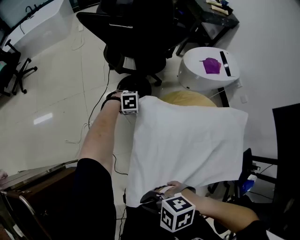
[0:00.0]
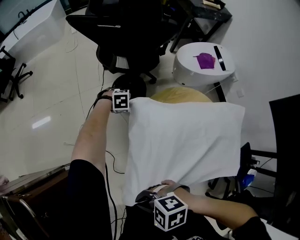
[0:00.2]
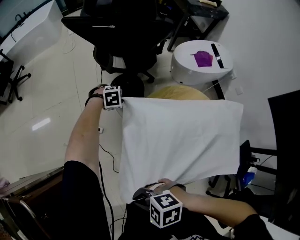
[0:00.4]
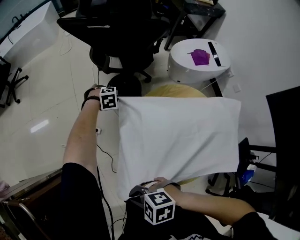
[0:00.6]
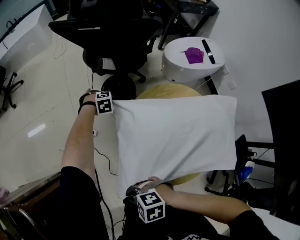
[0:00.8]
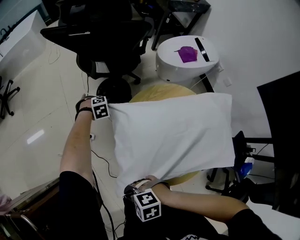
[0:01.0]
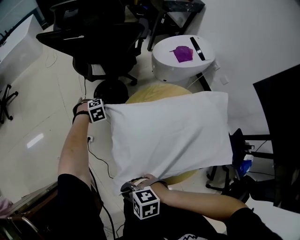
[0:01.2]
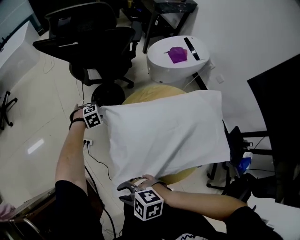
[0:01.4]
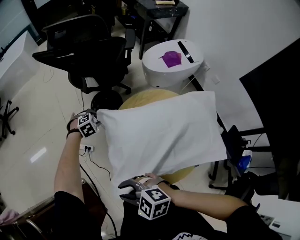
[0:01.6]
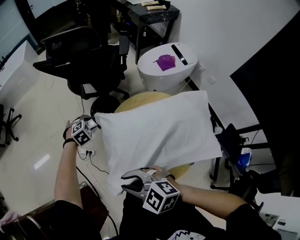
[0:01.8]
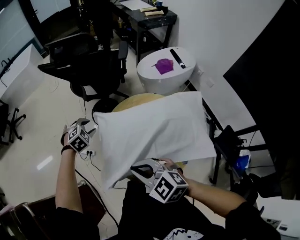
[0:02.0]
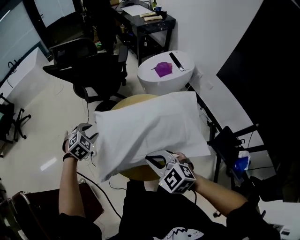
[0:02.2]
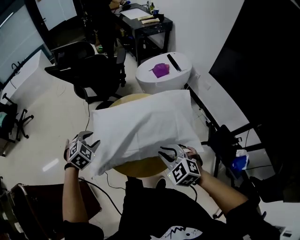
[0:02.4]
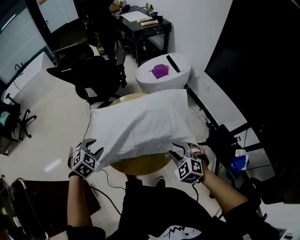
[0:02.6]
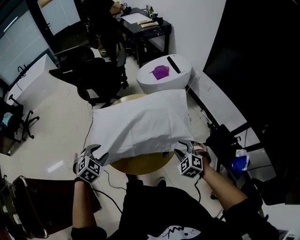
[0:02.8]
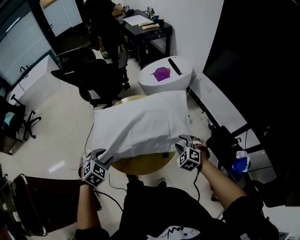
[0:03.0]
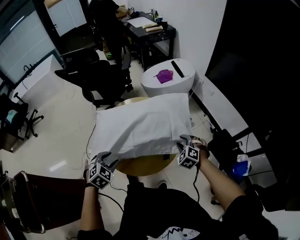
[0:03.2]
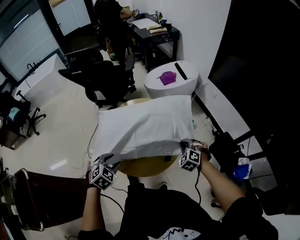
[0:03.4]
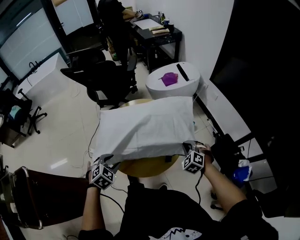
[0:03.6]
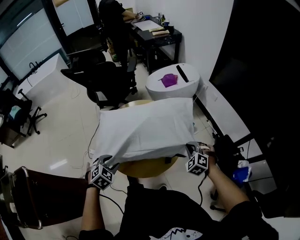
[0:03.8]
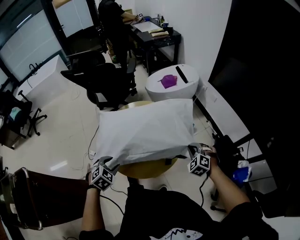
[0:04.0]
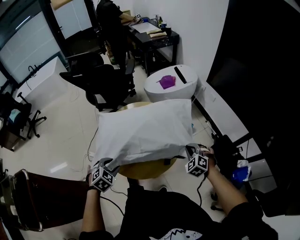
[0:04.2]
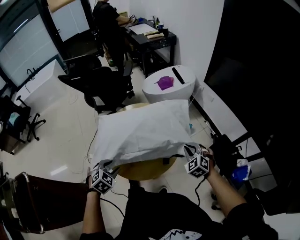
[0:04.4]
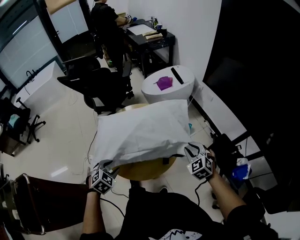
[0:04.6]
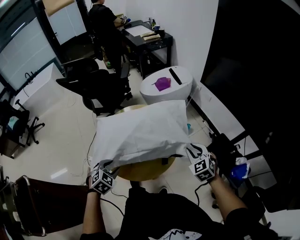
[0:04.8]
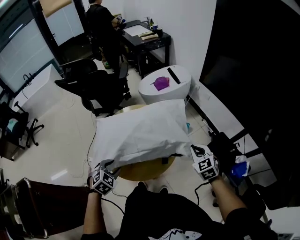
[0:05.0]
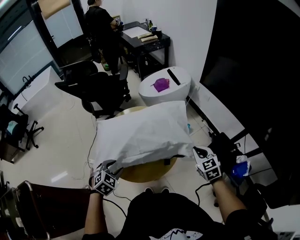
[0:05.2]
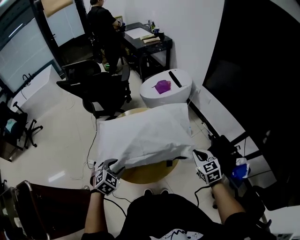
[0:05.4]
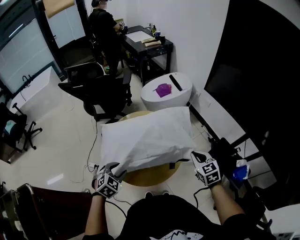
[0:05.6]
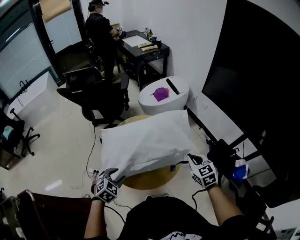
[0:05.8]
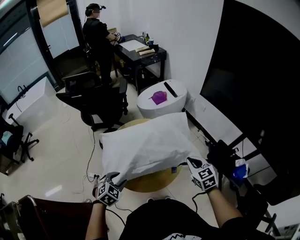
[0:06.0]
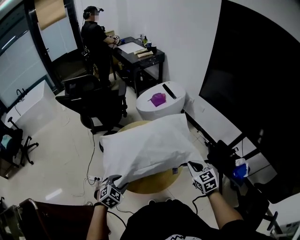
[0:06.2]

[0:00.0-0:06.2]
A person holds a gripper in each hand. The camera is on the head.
0:00.0 to 0:01.6: The right gripper reaches about 10 cm downward, then returns, rotates roughly 30 degrees, and opens. Meanwhile the left gripper changes place by approximately 5 cm, swivels approximately 20 degrees, and closes and opens again.
0:01.6 to 0:03.2: The right gripper shifts by approximately 50 cm, turns by some 50 degrees, and closes, then opens again, while the left gripper moves about 40 cm, and turns by roughly 20 degrees.
0:03.2 to 0:04.6: The right gripper heads upward, covering approximately 10 cm, rotates some 20 degrees, and closes, then reopens.
0:04.6 to 0:06.2: The right gripper moves backward and to the left, roughly 10 cm, changes its angle by roughly 30 degrees, and closes its fingers.

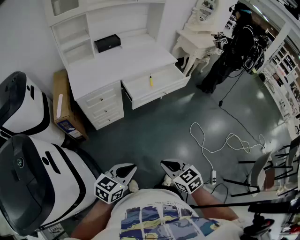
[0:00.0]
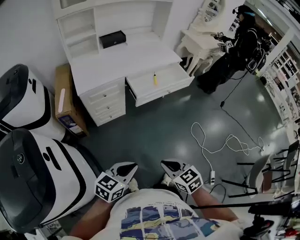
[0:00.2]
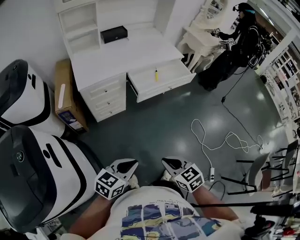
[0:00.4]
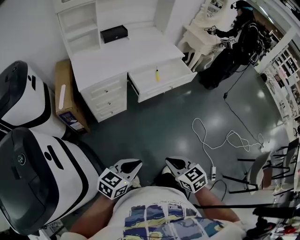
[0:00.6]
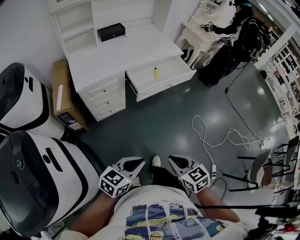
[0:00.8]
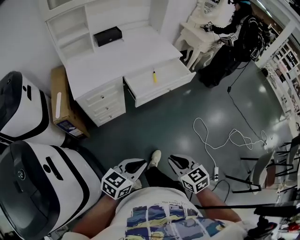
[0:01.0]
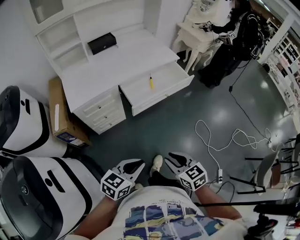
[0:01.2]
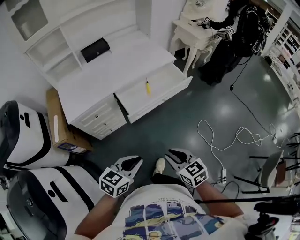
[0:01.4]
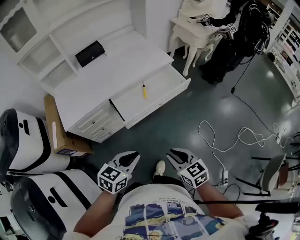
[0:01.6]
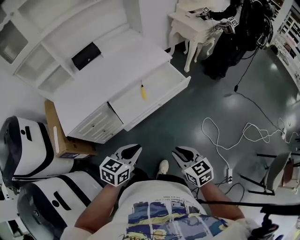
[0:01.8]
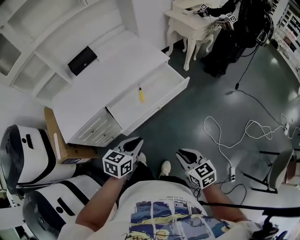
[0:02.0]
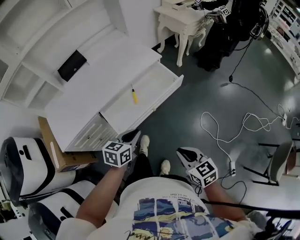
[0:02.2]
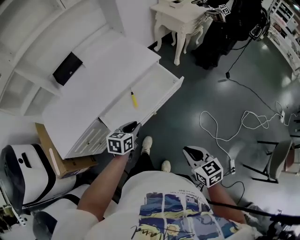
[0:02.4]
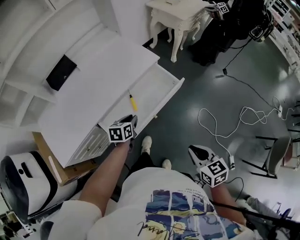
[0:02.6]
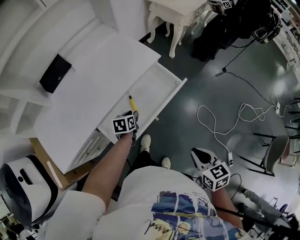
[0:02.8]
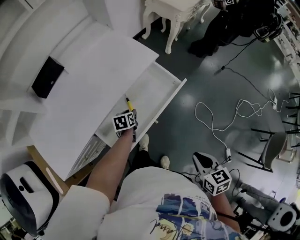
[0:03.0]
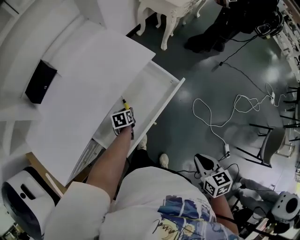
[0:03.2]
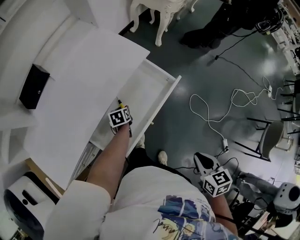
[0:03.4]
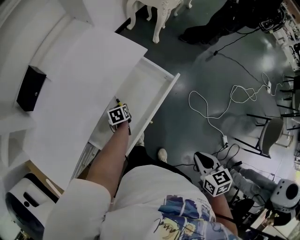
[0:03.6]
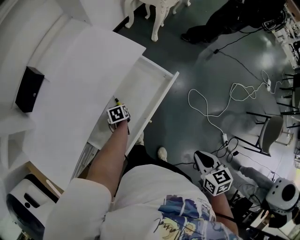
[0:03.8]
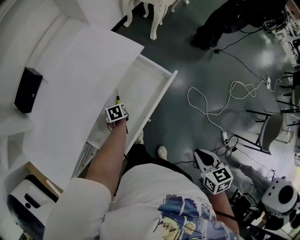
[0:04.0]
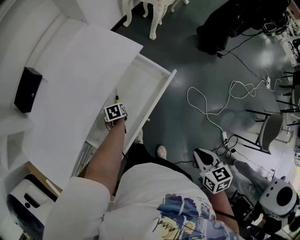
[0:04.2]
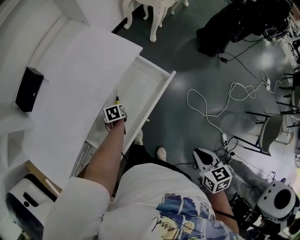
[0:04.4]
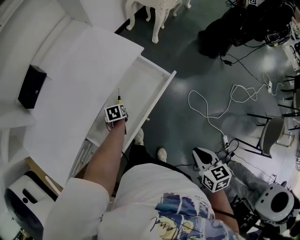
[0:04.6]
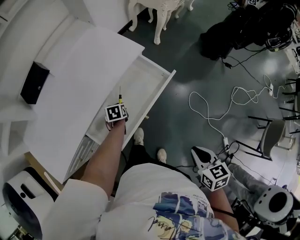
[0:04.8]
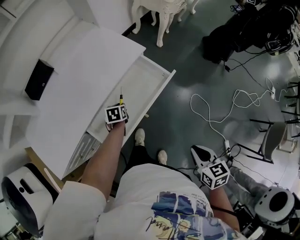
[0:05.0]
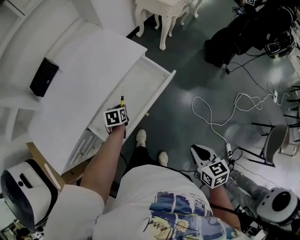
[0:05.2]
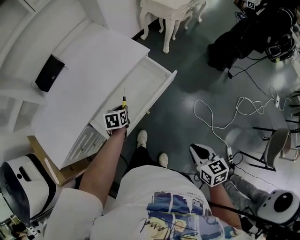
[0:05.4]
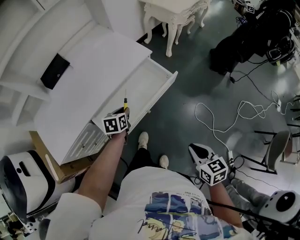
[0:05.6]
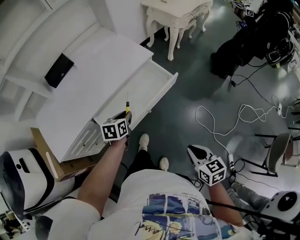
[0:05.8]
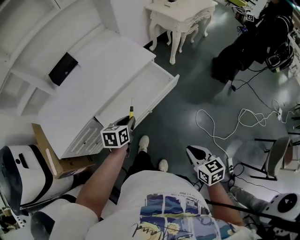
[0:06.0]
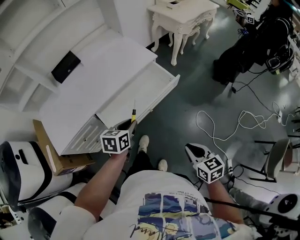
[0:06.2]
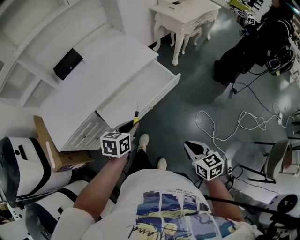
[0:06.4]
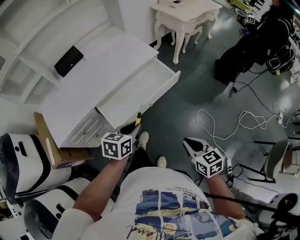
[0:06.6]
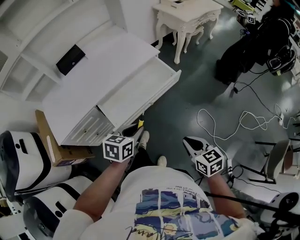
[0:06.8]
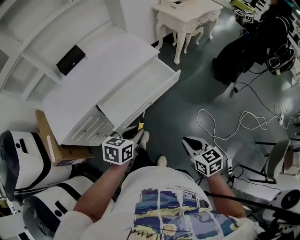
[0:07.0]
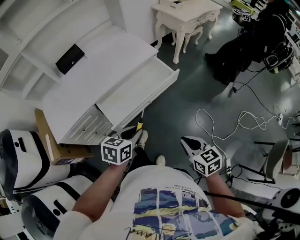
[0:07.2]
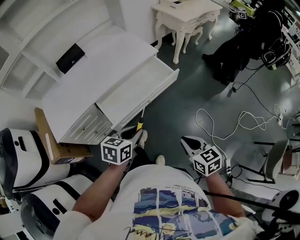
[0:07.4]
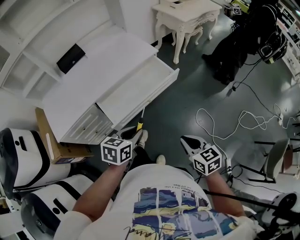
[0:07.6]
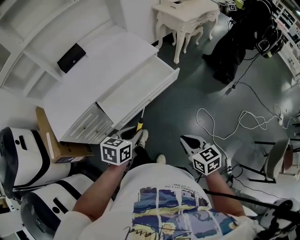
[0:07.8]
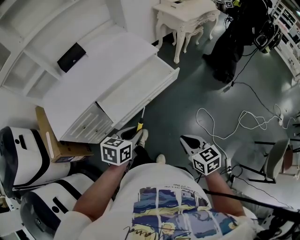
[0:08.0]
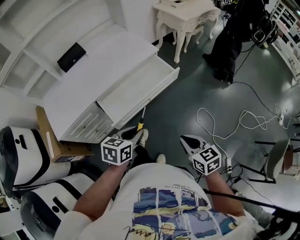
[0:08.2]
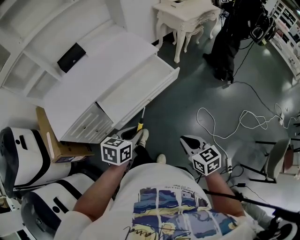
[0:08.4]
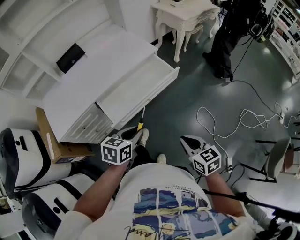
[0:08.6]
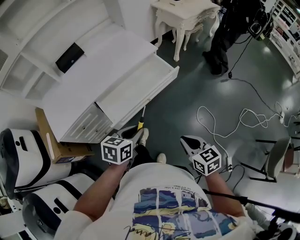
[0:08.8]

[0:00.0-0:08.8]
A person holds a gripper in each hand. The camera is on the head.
0:00.0 to 0:01.4: The grippers both shift forward by approximately 20 cm. The right gripper opens its fingers.
0:01.4 to 0:03.0: The right gripper travels forward and to the right by roughly 25 cm, and swivels some 40 degrees. The left gripper heads forward and downward, covering about 60 cm, swivels roughly 40 degrees, and opens its fingers.
0:03.0 to 0:04.4: The left gripper moves downward, some 5 cm.
0:04.4 to 0:05.8: The right gripper shifts approximately 5 cm backward; the left gripper shifts roughly 25 cm upward and backward, and rotates some 20 degrees.
0:05.8 to 0:07.4: The left gripper goes some 20 cm backward and upward.
0:07.4 to 0:08.8: Neither gripper changes place.

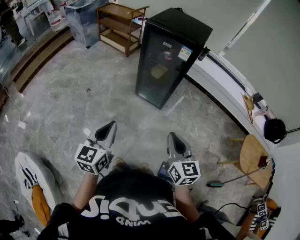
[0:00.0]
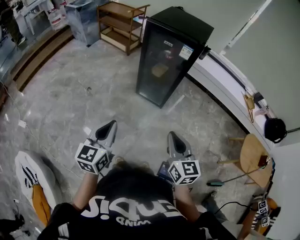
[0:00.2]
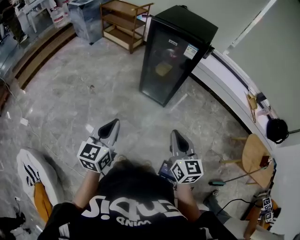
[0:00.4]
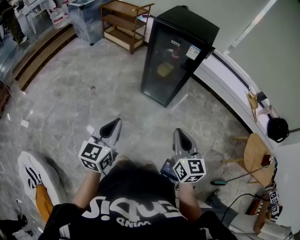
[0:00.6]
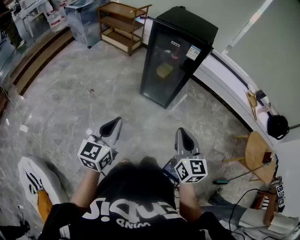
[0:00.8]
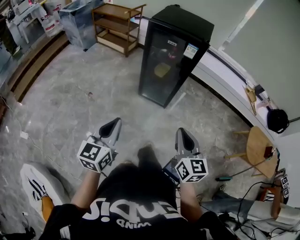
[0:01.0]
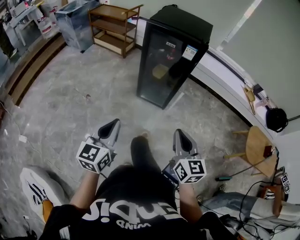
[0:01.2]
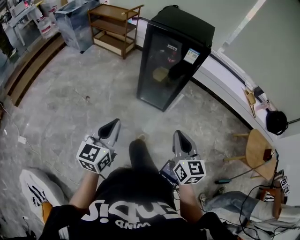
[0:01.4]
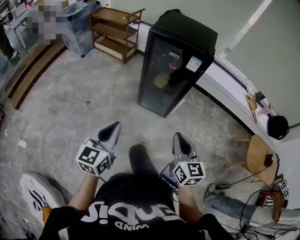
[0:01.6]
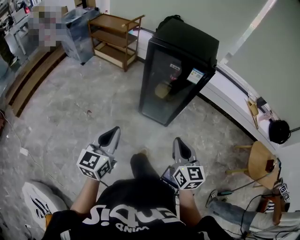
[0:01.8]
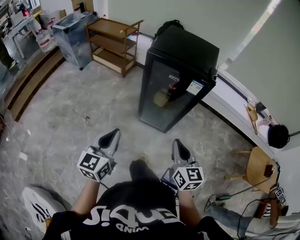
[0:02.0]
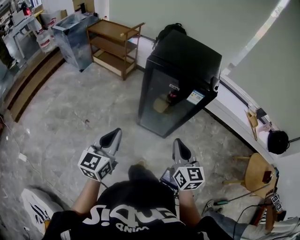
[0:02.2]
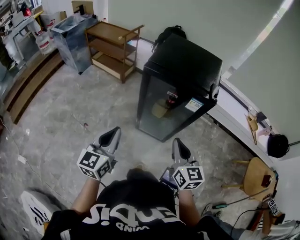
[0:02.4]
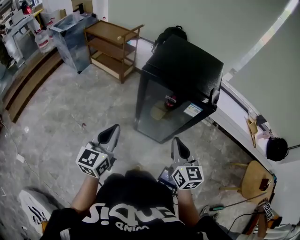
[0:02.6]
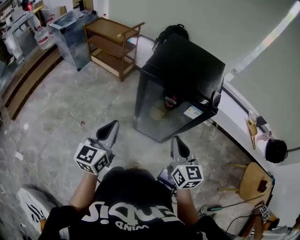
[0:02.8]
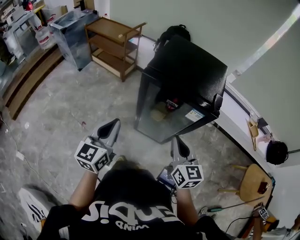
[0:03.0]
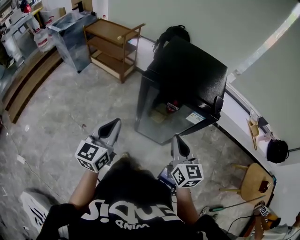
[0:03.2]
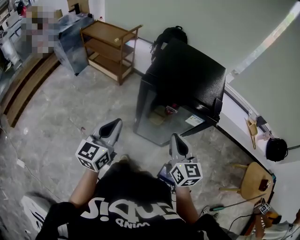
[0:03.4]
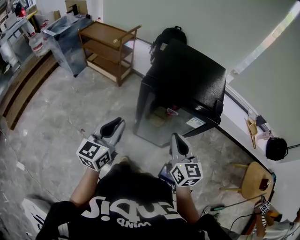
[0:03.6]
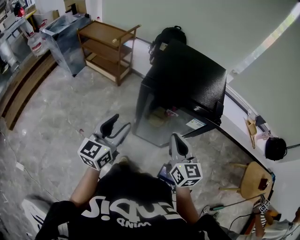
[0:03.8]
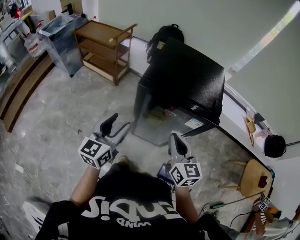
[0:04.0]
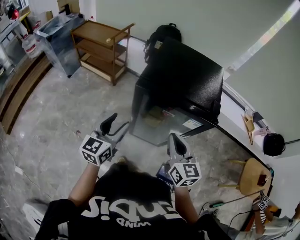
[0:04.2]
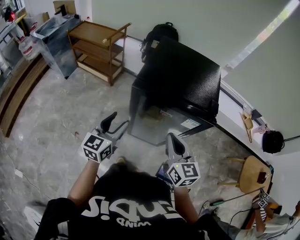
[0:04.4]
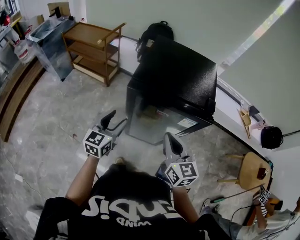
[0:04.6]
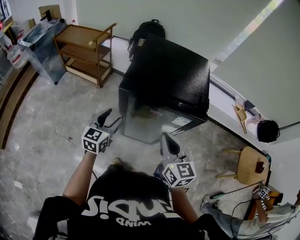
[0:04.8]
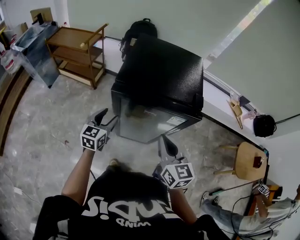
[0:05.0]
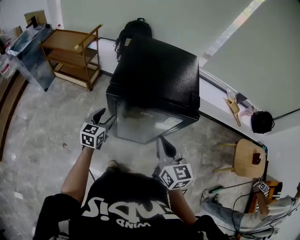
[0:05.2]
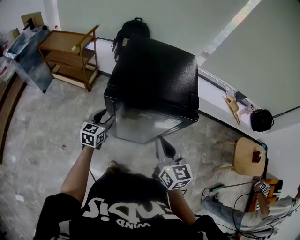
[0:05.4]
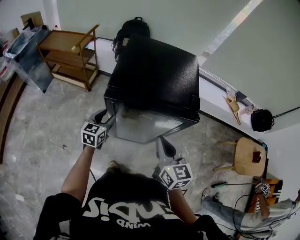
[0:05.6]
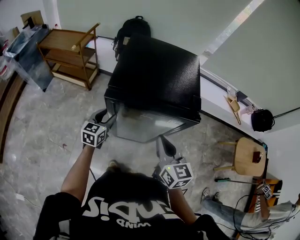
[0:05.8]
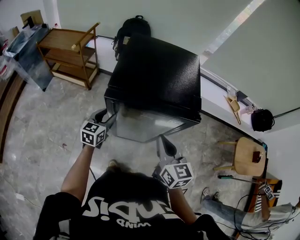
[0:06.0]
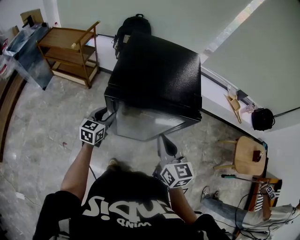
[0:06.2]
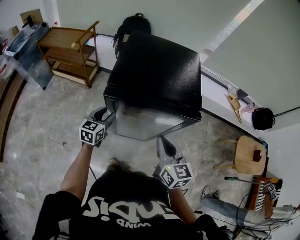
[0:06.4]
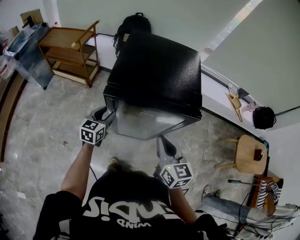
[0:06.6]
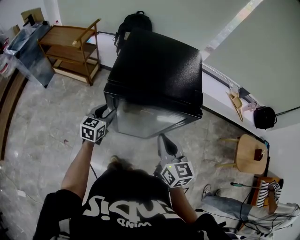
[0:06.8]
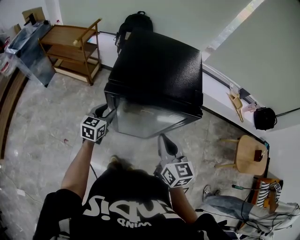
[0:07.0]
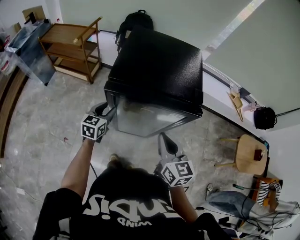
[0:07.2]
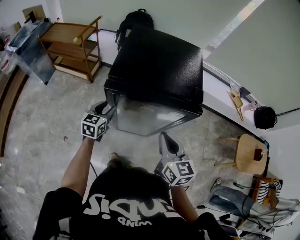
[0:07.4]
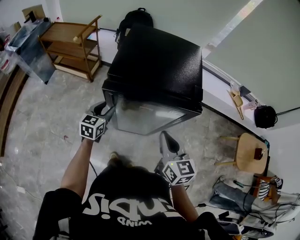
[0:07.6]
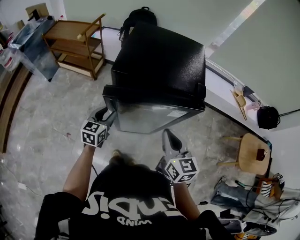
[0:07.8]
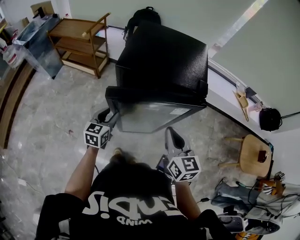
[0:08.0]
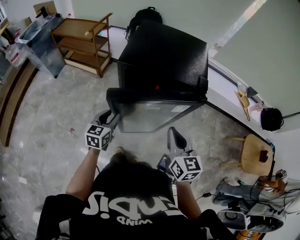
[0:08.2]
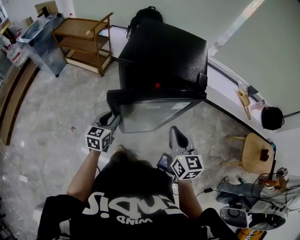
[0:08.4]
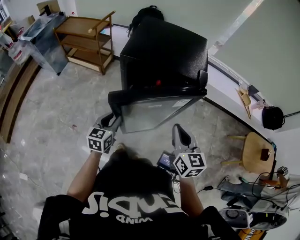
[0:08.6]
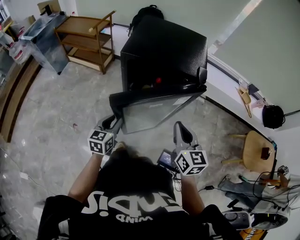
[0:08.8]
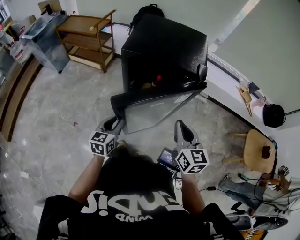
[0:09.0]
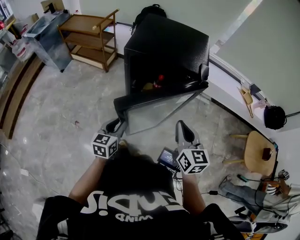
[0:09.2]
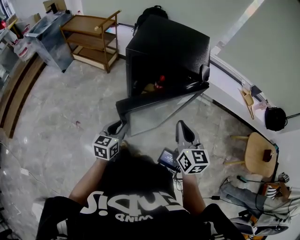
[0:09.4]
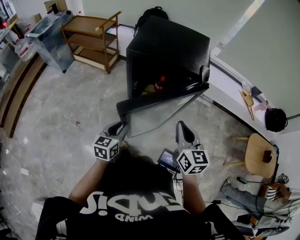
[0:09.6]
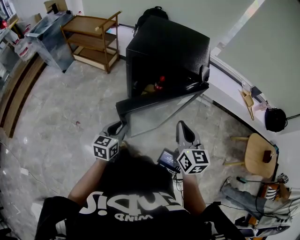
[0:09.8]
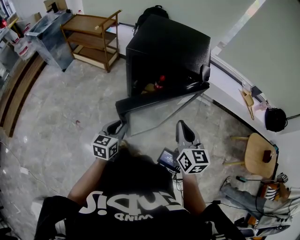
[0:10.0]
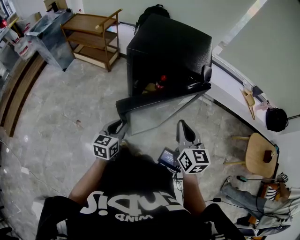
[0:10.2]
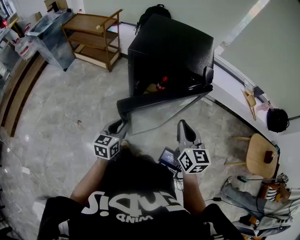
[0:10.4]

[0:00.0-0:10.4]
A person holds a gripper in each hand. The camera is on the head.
0:00.0 to 0:01.4: Both grippers travel together forward and to the left, roughly 10 cm.
0:01.4 to 0:03.0: Both grippers travel together forward, about 35 cm.
0:03.0 to 0:04.4: The left gripper is displaced forward and downward by some 15 cm, and opens; the right gripper heads forward, covering some 5 cm.
0:04.4 to 0:06.0: The left gripper is displaced forward and downward by approximately 15 cm.
0:06.0 to 0:07.4: The grippers stay close to where they were, moving slightly.
0:07.4 to 0:09.0: The right gripper heads backward and to the right, covering about 10 cm; the left gripper travels backward by approximately 20 cm.
0:09.0 to 0:10.4: The grippers stay close to where they were, moving slightly.
